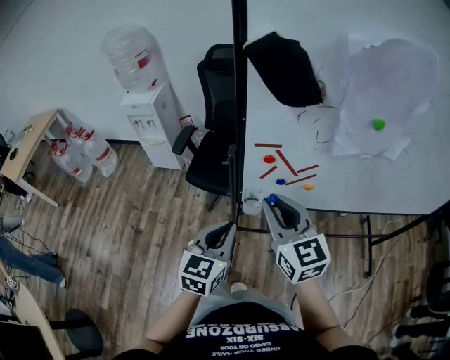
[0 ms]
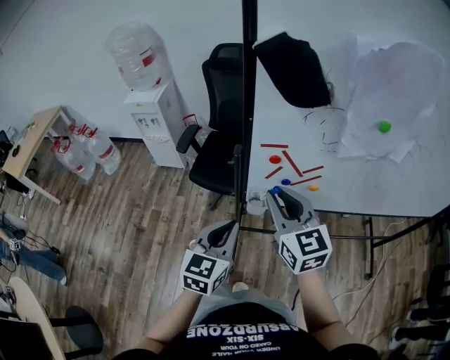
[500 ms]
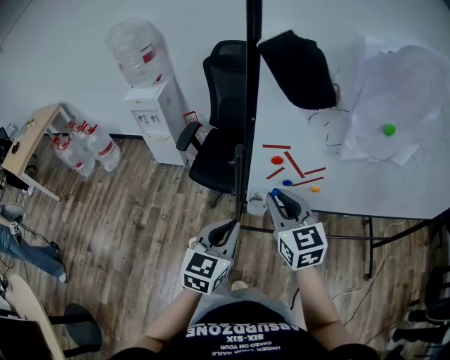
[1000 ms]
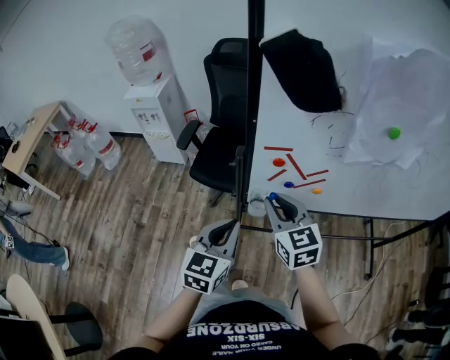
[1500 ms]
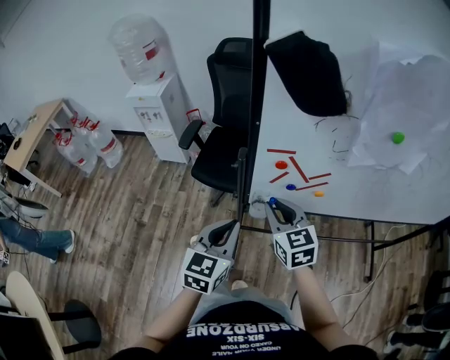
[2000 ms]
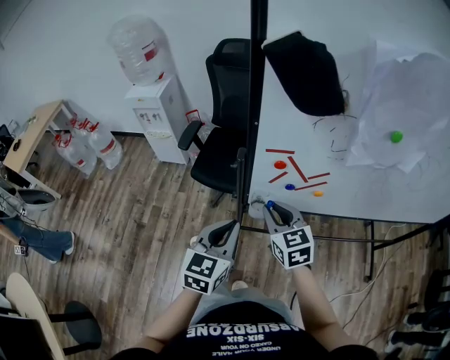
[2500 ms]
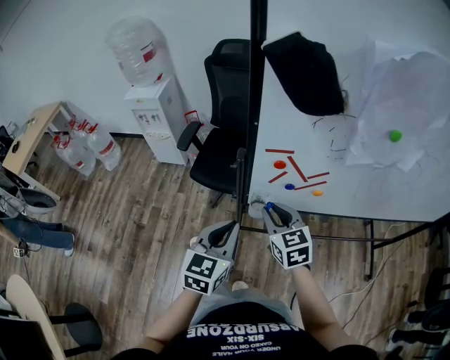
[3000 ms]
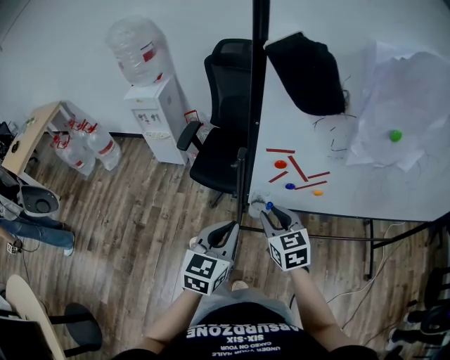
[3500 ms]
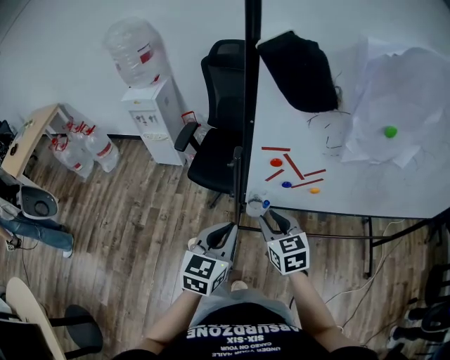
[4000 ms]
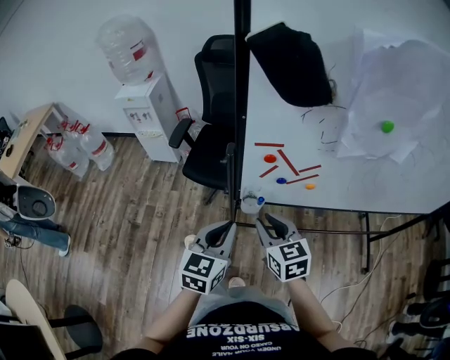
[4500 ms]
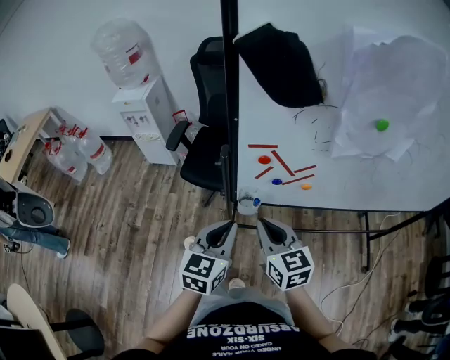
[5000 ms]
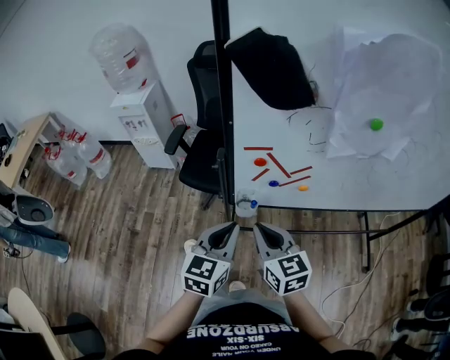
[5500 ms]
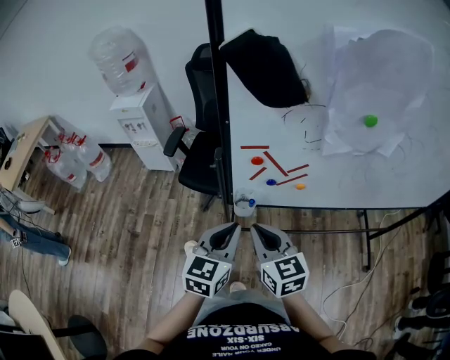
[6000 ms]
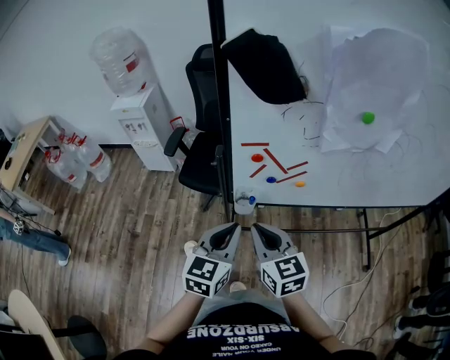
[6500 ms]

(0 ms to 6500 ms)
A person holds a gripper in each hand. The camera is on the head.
0 ms - 2000 ms: The right gripper moves downward and forward, roughly 10 cm.
2000 ms - 4500 ms: The right gripper goes approximately 5 cm backward.
4500 ms - 6500 ms: The right gripper ends up about 5 cm from where it was, and closes.

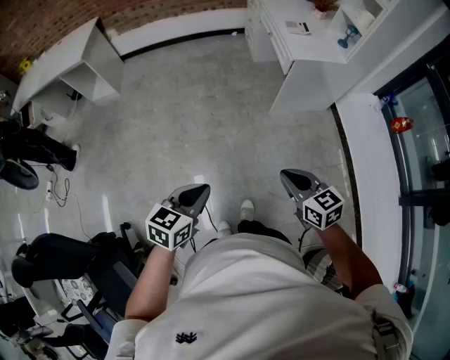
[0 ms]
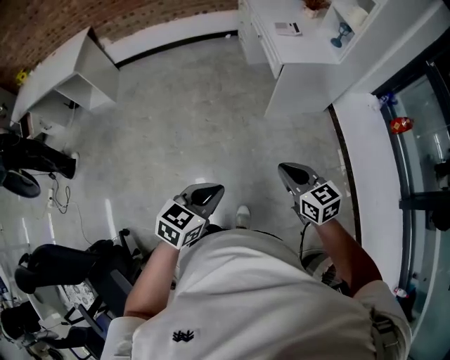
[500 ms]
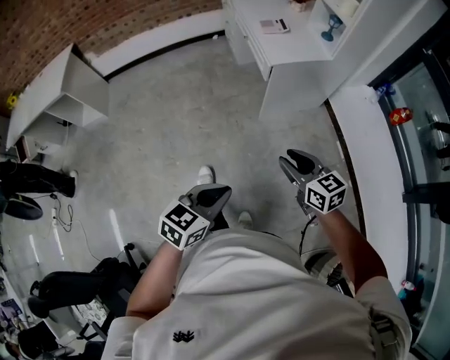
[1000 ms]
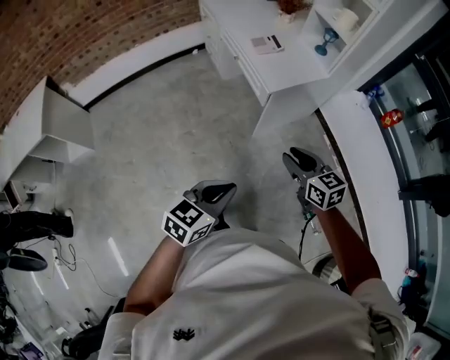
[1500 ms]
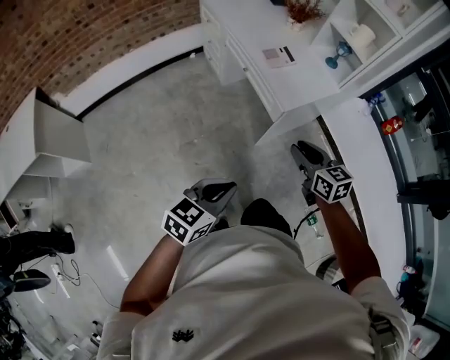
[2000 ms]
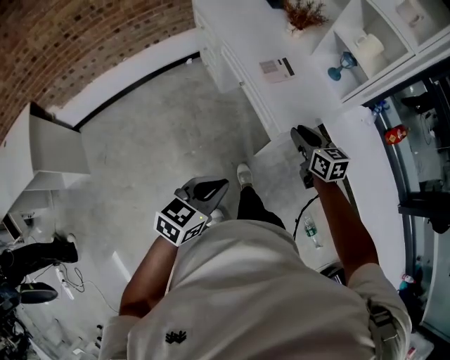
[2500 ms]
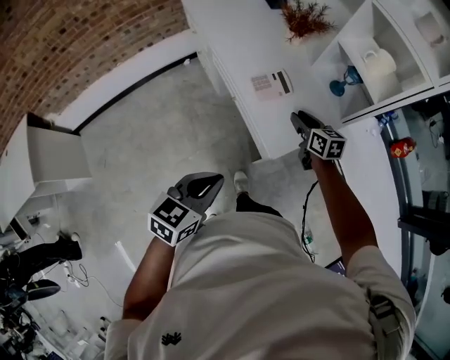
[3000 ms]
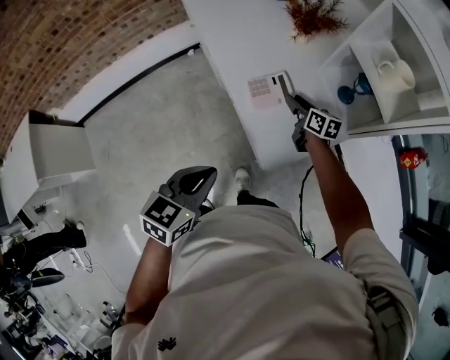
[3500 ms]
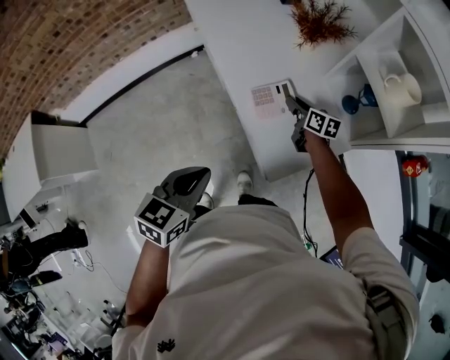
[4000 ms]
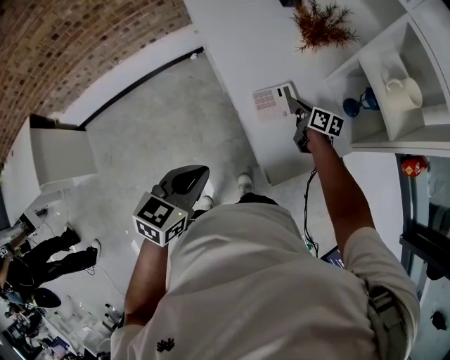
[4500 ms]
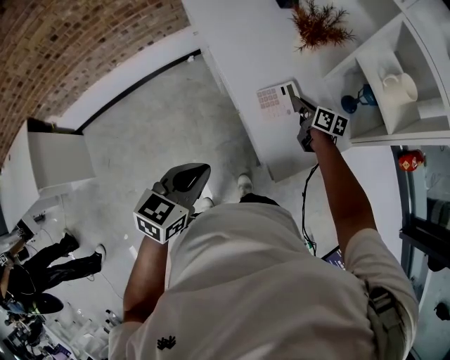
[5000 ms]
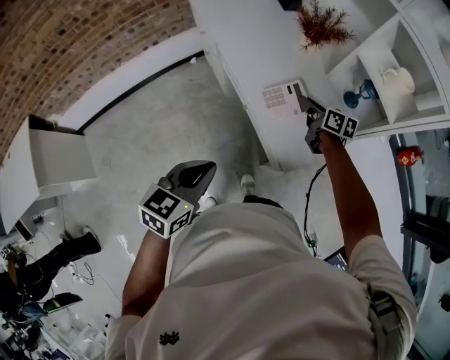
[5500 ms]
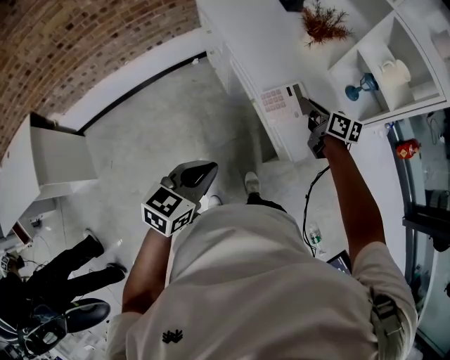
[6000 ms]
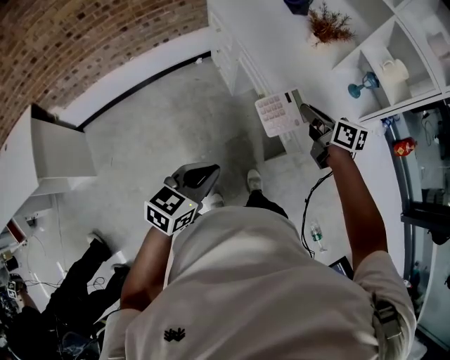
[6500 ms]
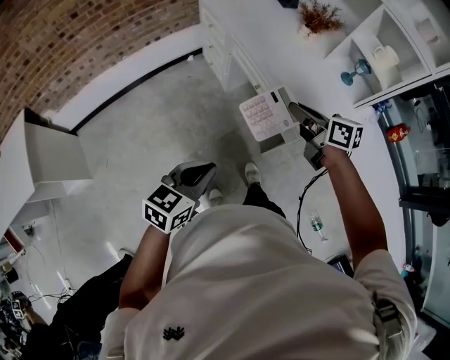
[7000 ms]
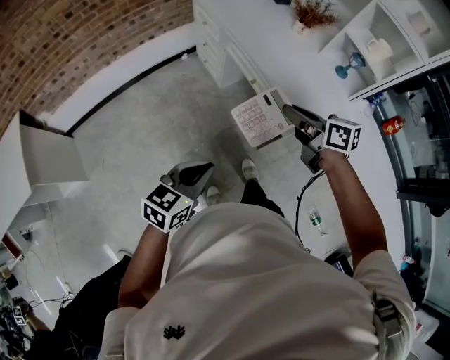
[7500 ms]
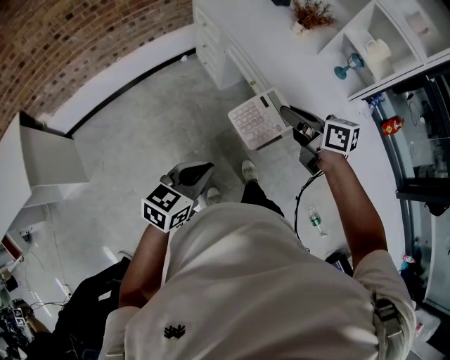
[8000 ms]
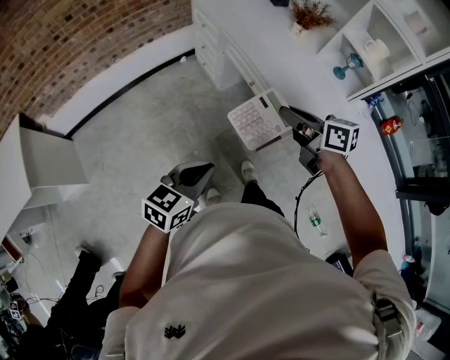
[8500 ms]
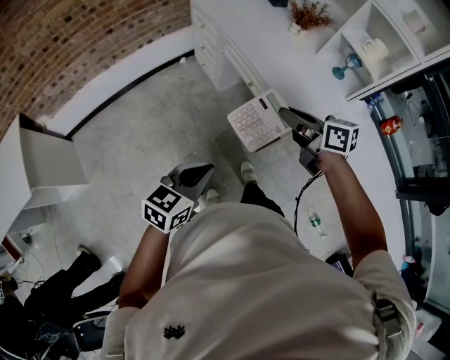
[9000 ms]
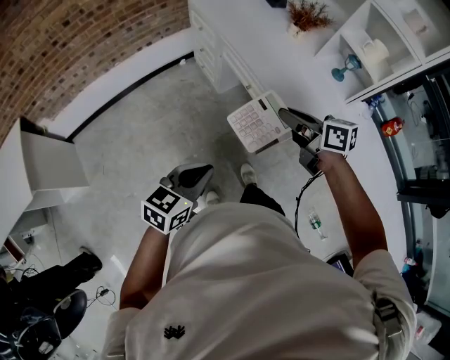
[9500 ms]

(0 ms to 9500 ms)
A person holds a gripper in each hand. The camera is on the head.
0 ms - 2000 ms: The two grippers travel together, approximately 40 cm. The left gripper swivels some 30 degrees, while the right gripper changes its angle by approximately 30 degrees, and opens its fingers.
2000 ms - 4000 ms: The grippers both shift forward by some 50 cm. The right gripper turns by roughly 30 degrees.
4000 ms - 5500 ms: The left gripper goes about 5 cm to the left; the right gripper goes some 10 cm upward, and closes up.
5500 ms - 7500 ms: The left gripper moves backward and to the left, about 20 cm, while the right gripper moves backward, to the left and upward, about 35 cm.
7500 ms - 9500 ms: The grippers make only small movements.

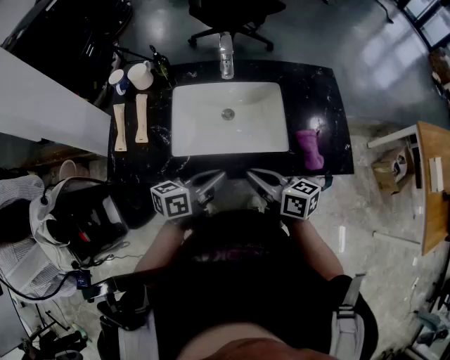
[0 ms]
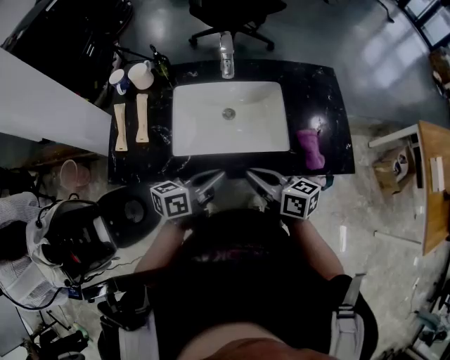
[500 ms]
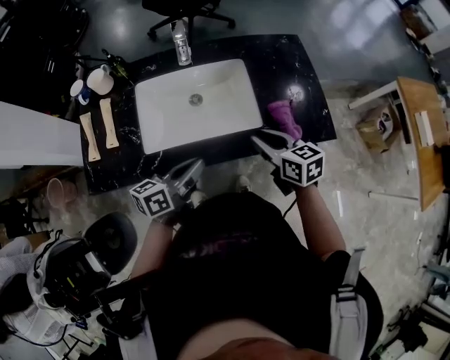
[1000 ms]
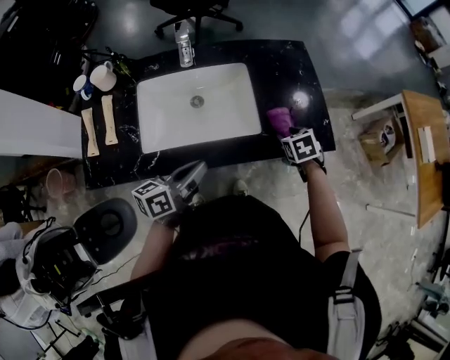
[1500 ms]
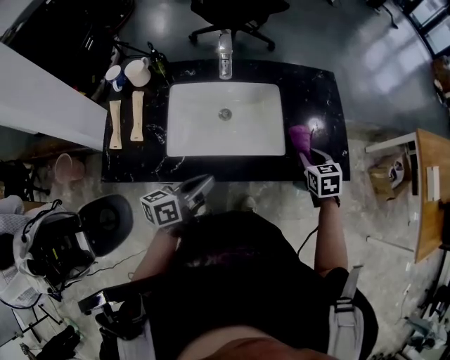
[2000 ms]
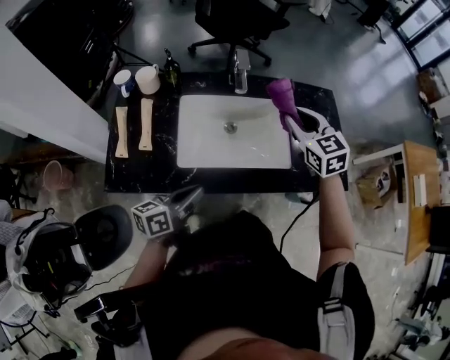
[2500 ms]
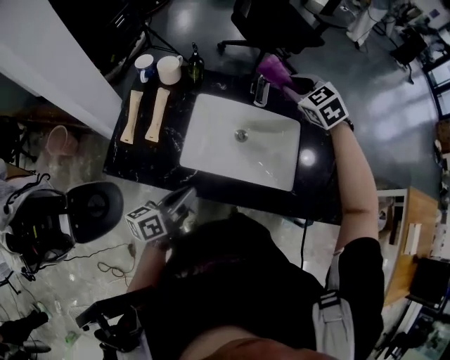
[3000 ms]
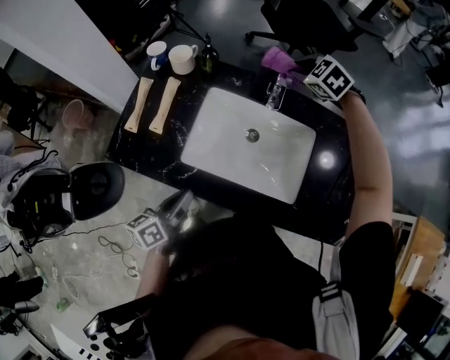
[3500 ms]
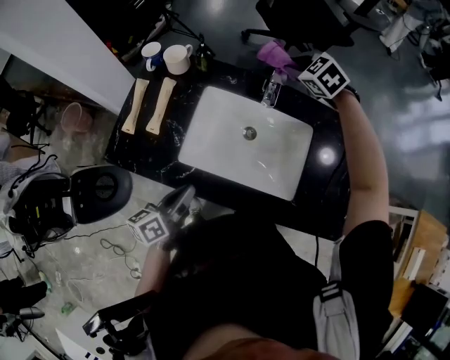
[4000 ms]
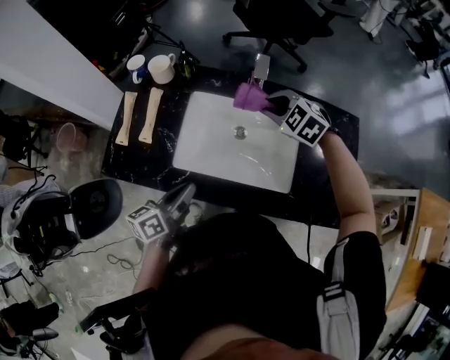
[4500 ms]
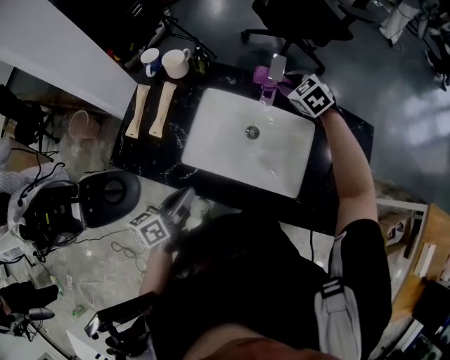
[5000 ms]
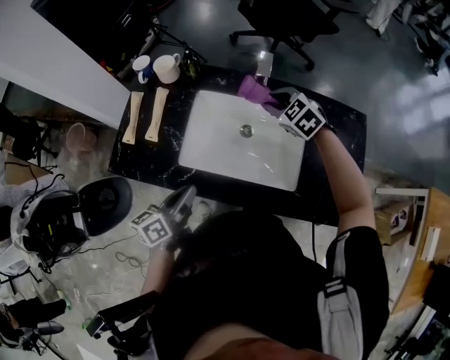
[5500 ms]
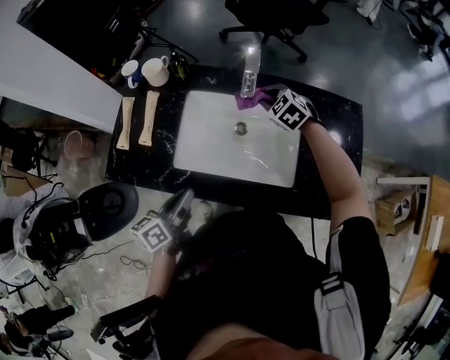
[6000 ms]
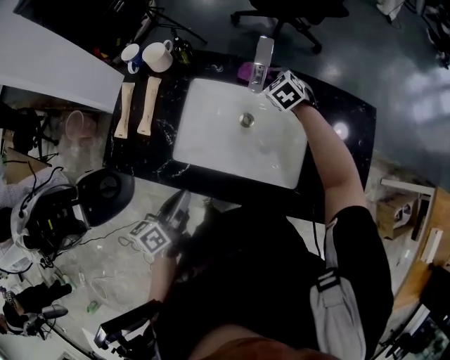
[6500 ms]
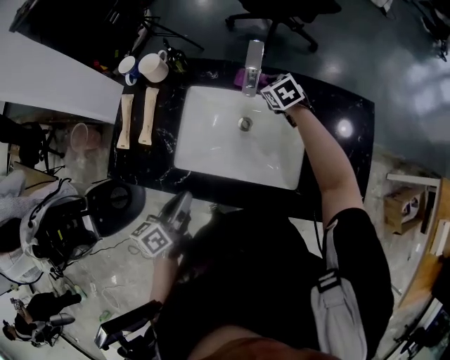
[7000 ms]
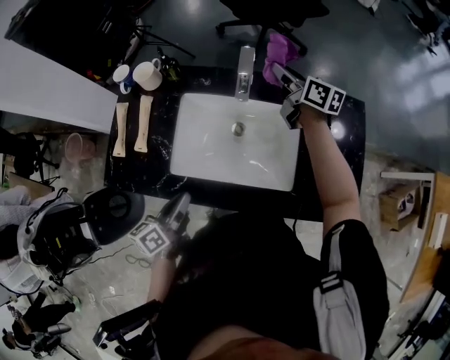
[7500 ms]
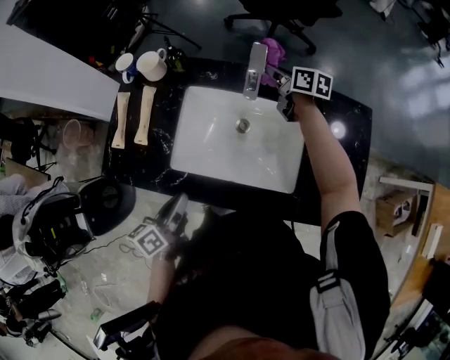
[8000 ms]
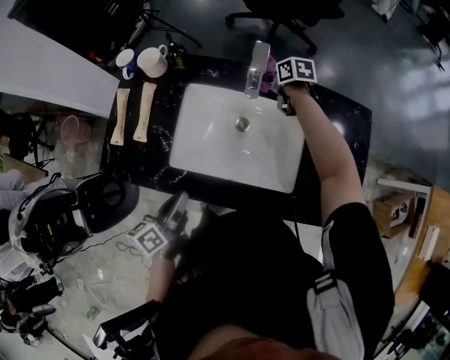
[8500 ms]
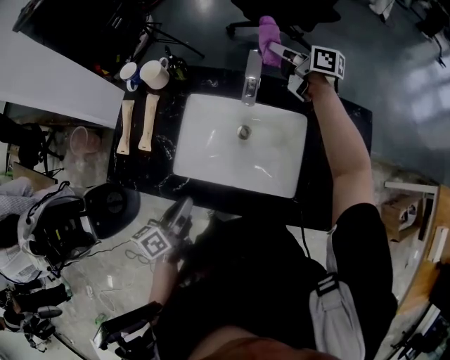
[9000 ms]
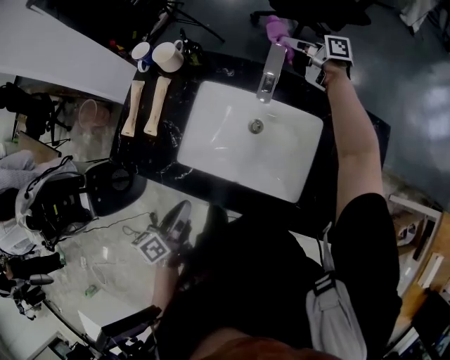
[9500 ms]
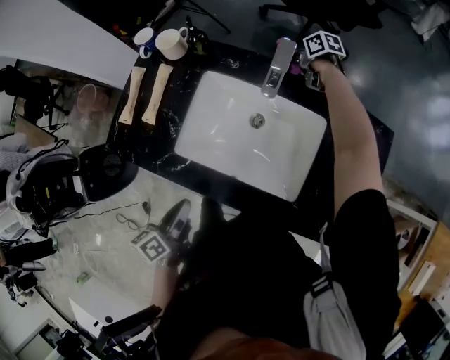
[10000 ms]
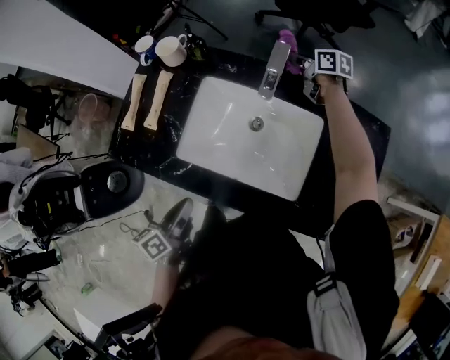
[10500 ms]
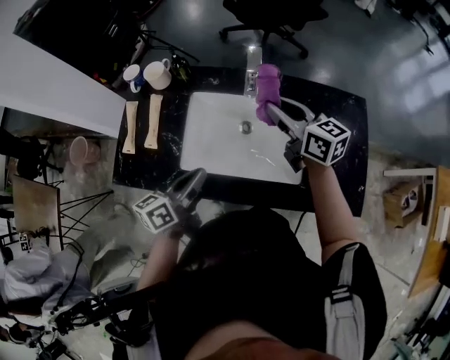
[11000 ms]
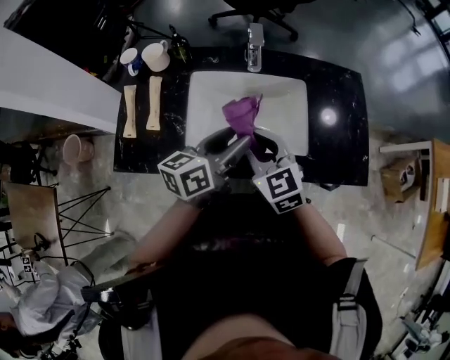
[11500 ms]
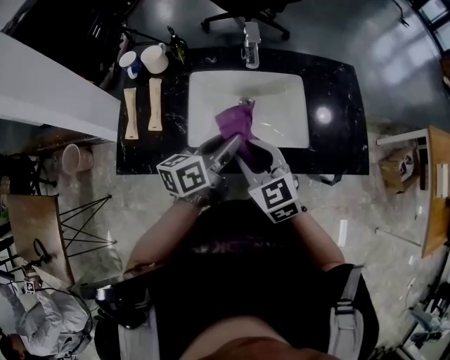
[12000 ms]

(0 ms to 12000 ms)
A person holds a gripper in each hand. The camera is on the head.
0 ms - 2000 ms: The right gripper goes some 25 cm to the right and forward, points its fingers some 40 degrees further downward, and opens its fingers.
2000 ms - 4000 ms: The right gripper ends up some 40 cm from where it was, and twists roughly 50 degrees counterclockwise, seen from behind. Meanwhile the left gripper moves about 10 cm, and swivels approximately 30 degrees.
4000 ms - 6000 ms: The right gripper goes forward and backward, some 15 cm each way, reversing 2 times.
6000 ms - 8000 ms: The right gripper goes up and down, approximately 15 cm each way, reversing 2 times, and rotates around the line of its fingers by roughly 70 degrees, clockwise from behind.
8000 ms - 10000 ms: The right gripper swings up and down, some 20 cm each way, with 2 reversals, and rotates roughly 30 degrees. Meanwhile the left gripper is displaced backward by approximately 5 cm.
10000 ms - 12000 ms: The right gripper moves roughly 50 cm, and turns by roughly 50 degrees, while the left gripper changes place by some 15 cm, turns by approximately 40 degrees, and opens.
